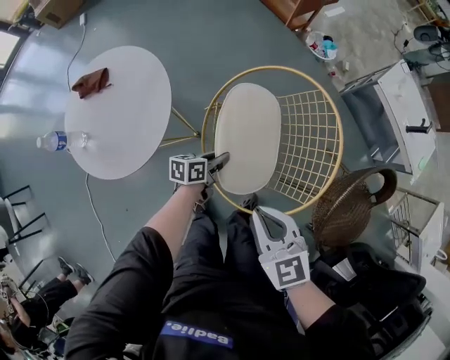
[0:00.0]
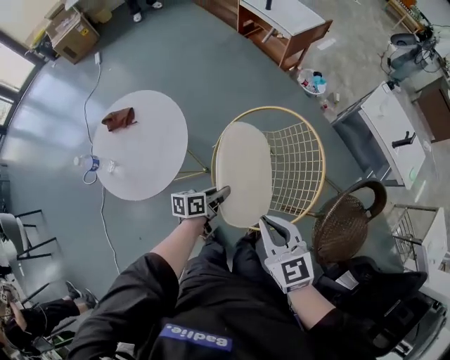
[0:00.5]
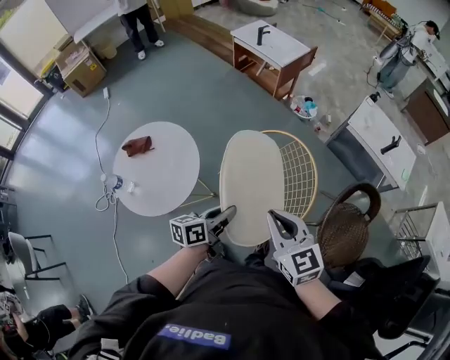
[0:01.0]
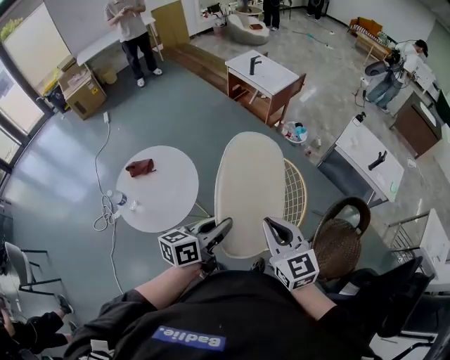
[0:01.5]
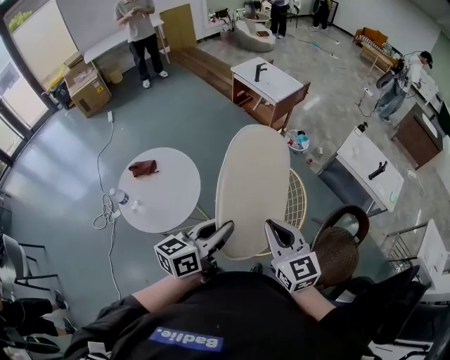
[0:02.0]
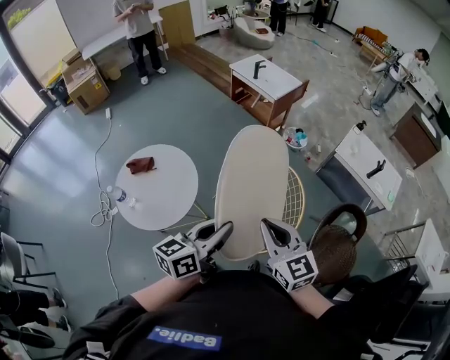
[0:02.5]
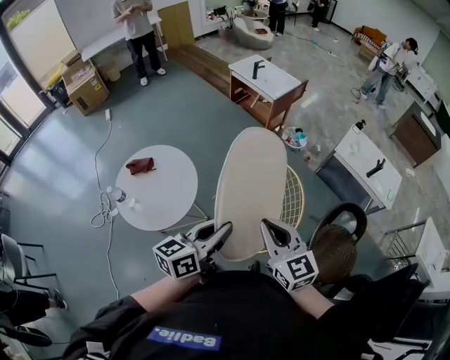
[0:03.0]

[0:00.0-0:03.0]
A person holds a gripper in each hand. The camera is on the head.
0:00.0 to 0:01.5: The left gripper heads upward, covering some 40 cm, and changes its angle by approximately 30 degrees. Meanwhile the right gripper travels upward by about 20 cm, and swivels some 20 degrees.
0:01.5 to 0:03.0: The left gripper is displaced upward by approximately 5 cm.

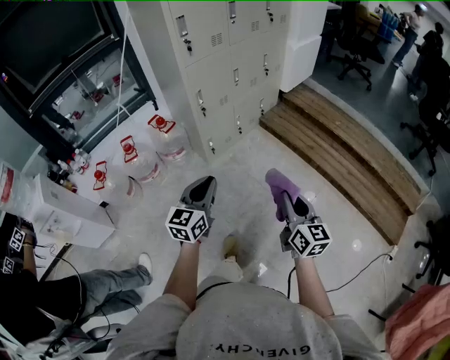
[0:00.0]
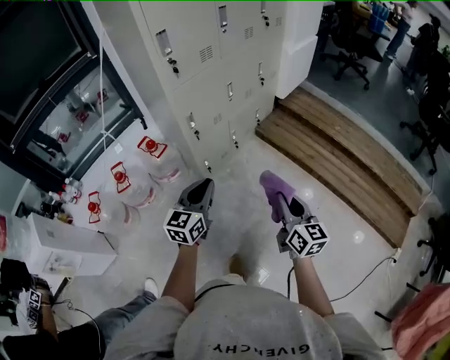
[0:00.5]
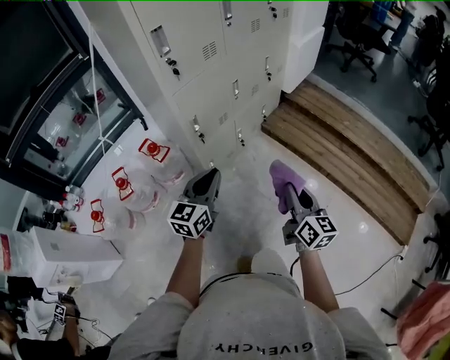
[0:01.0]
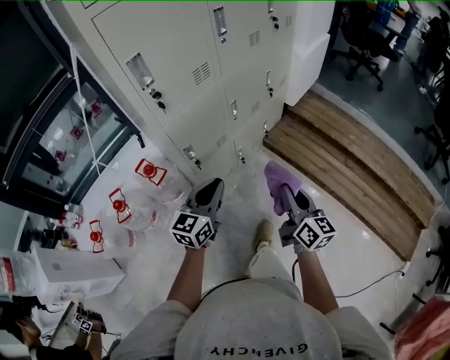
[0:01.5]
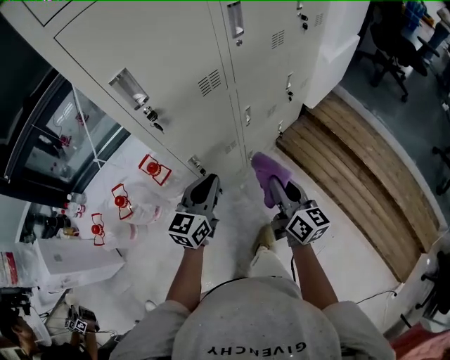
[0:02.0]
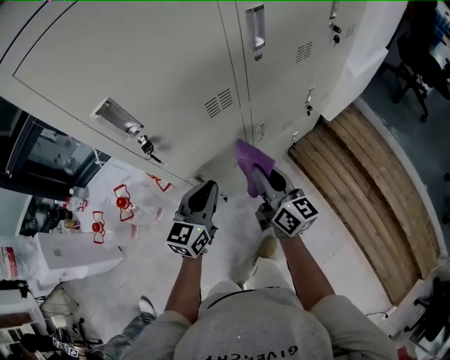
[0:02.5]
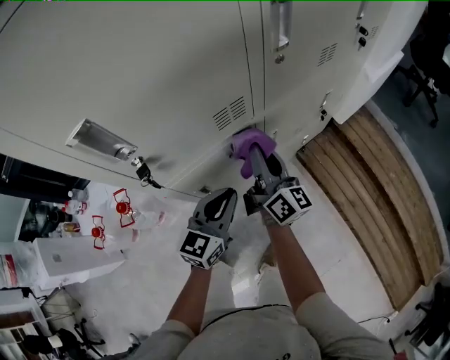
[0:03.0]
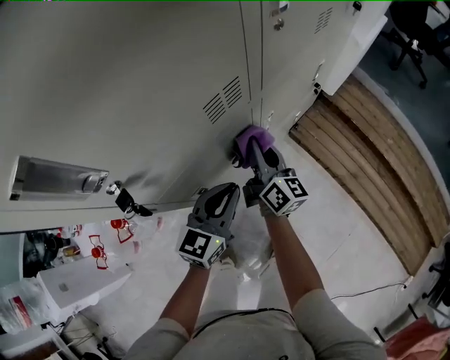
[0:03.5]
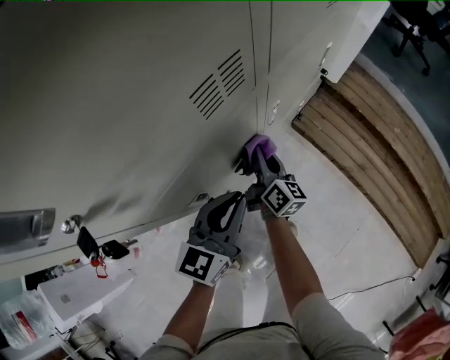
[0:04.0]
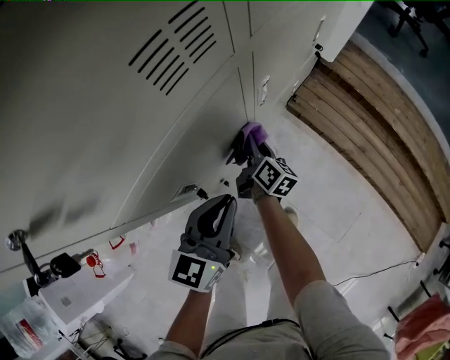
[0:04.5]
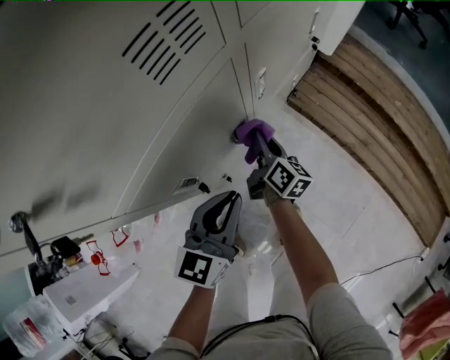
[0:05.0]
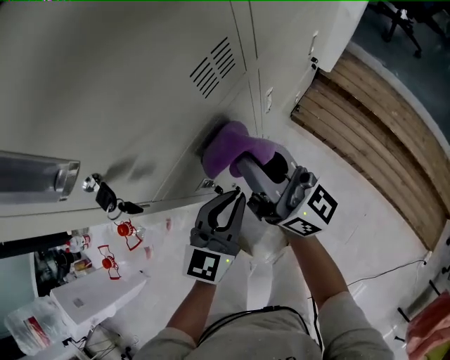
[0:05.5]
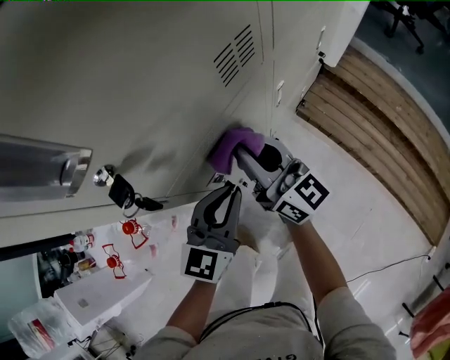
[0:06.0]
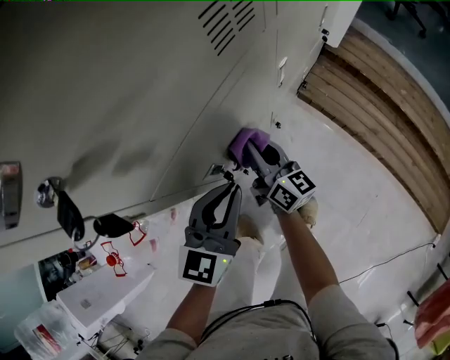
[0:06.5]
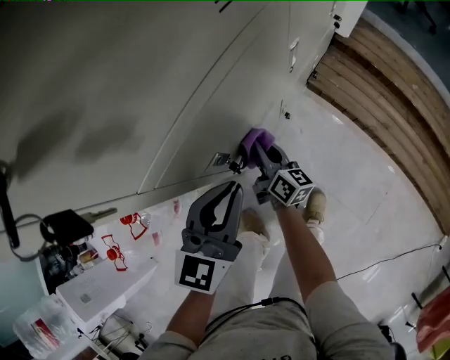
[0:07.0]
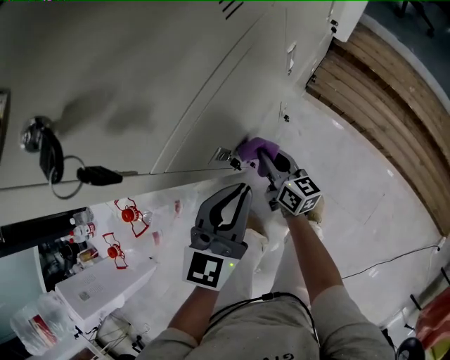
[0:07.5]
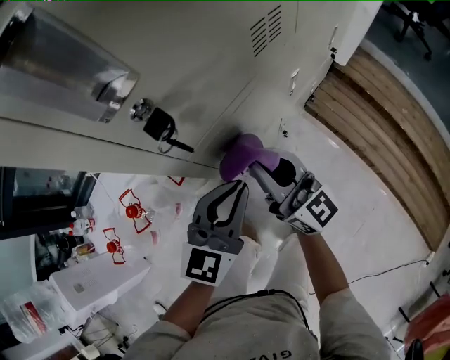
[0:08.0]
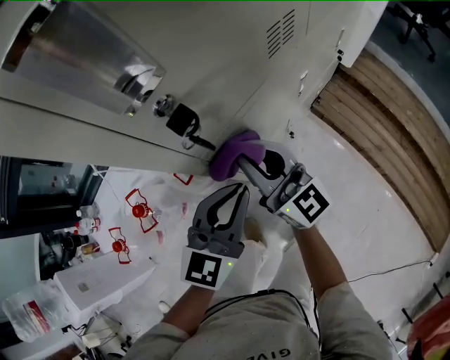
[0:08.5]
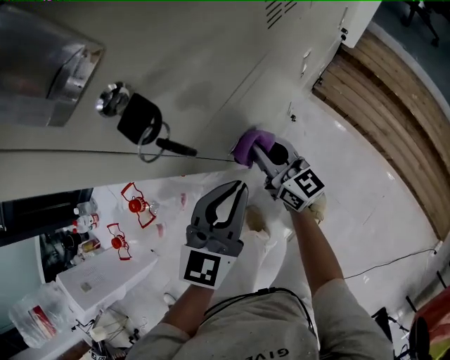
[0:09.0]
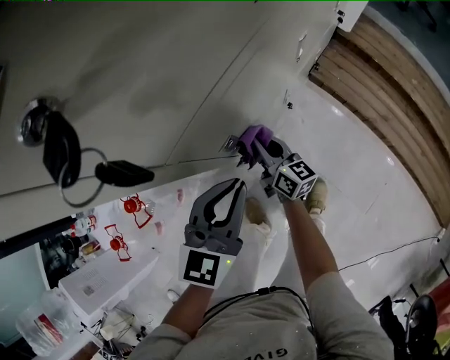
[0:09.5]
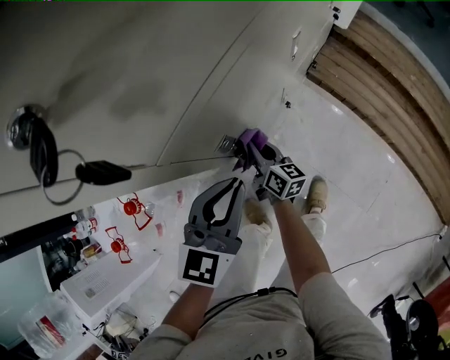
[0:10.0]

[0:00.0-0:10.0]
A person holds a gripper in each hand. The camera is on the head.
0:00.0 to 0:02.0: The pair of grippers is taken forward, approximately 50 cm.
0:02.0 to 0:04.0: The right gripper travels forward, downward and to the left by roughly 35 cm. The left gripper heads forward and downward, covering about 15 cm.
0:04.0 to 0:06.0: The left gripper changes place by some 5 cm; the right gripper swings up and down, about 35 cm each way, with 2 reversals, and changes its angle by some 40 degrees.
0:06.0 to 0:08.0: The left gripper changes place by about 5 cm; the right gripper travels backward by some 10 cm, and moves about 30 cm downward and comes back.
0:08.0 to 0:10.0: The left gripper goes some 10 cm downward. Meanwhile the right gripper is displaced downward by some 30 cm, and rotates about 40 degrees.

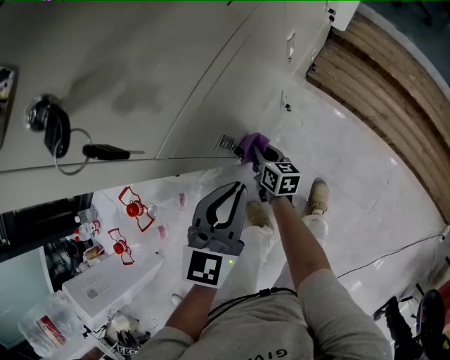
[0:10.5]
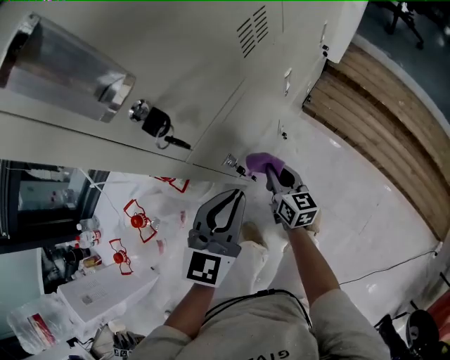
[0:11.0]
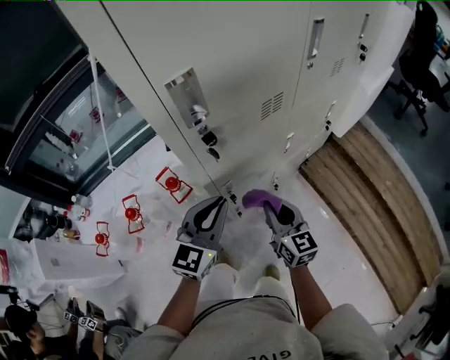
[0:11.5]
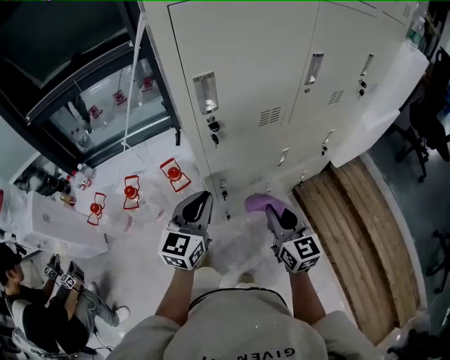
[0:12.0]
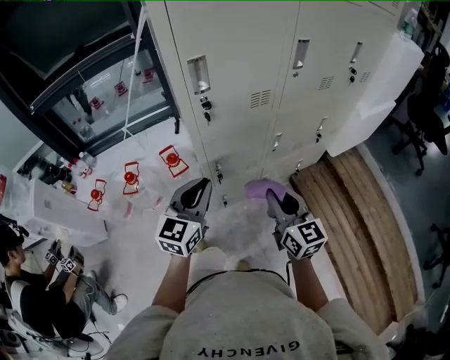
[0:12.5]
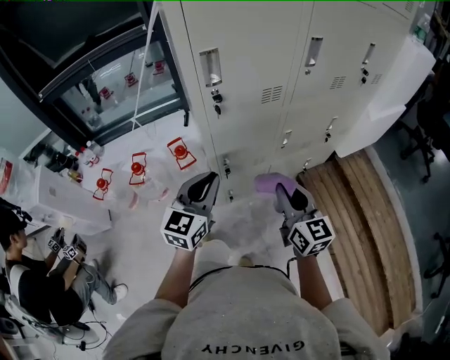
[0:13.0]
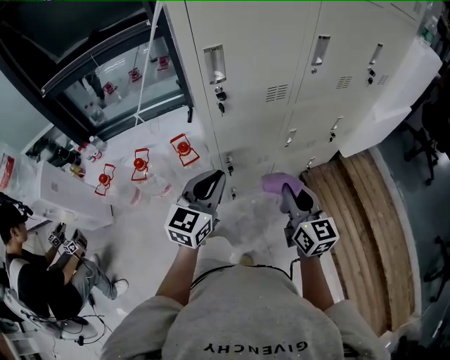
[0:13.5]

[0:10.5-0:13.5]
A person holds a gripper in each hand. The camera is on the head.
0:10.5 to 0:12.0: The left gripper goes some 20 cm upward, and changes its angle by about 40 degrees, while the right gripper is displaced upward by about 40 cm, and twists roughly 40 degrees counterclockwise, seen from behind.
0:12.0 to 0:13.5: The right gripper moves approximately 5 cm; the left gripper ends up roughly 5 cm from where it was.

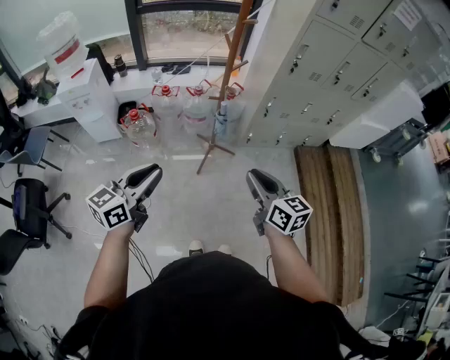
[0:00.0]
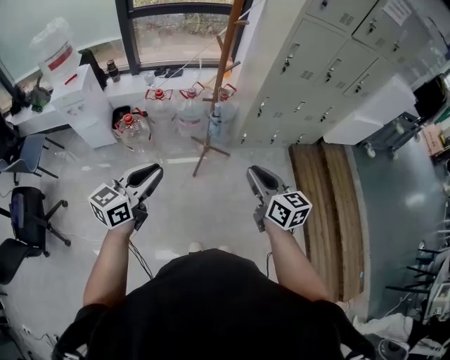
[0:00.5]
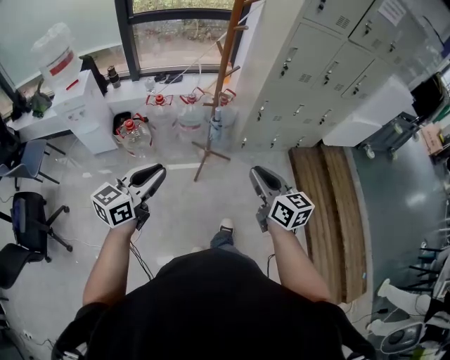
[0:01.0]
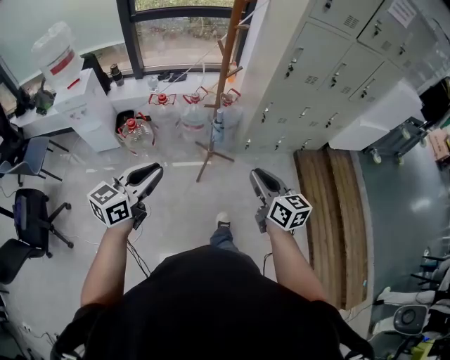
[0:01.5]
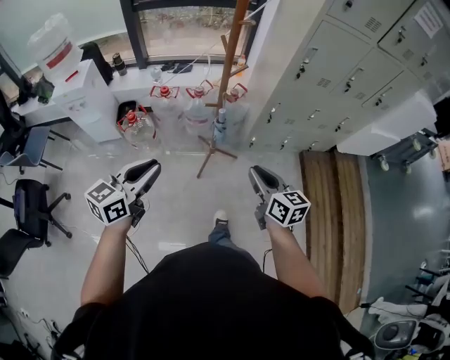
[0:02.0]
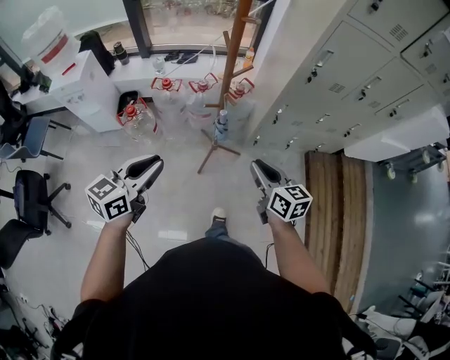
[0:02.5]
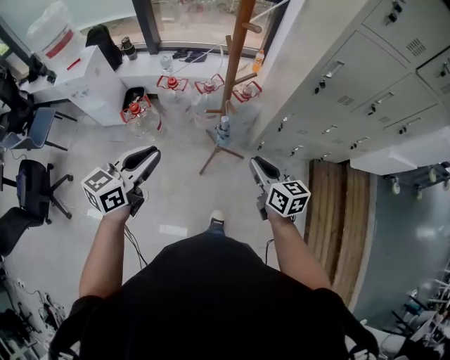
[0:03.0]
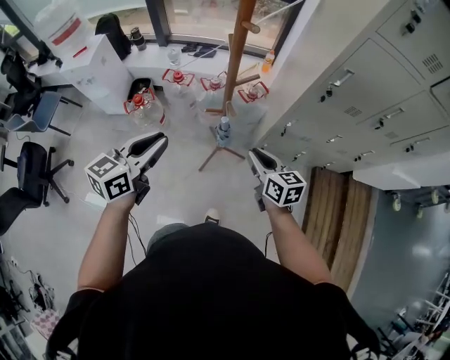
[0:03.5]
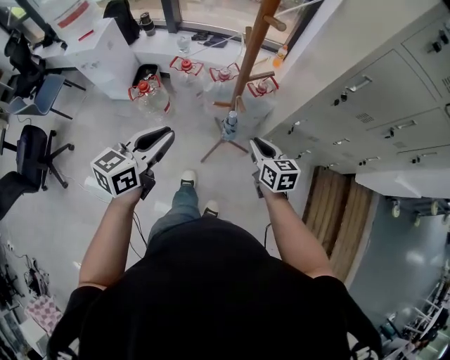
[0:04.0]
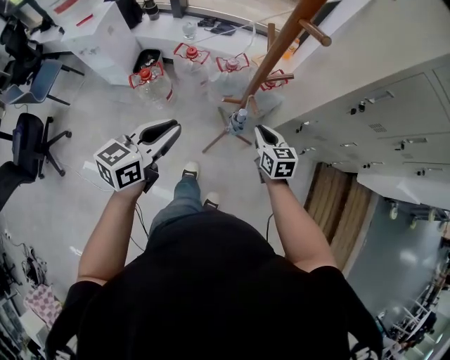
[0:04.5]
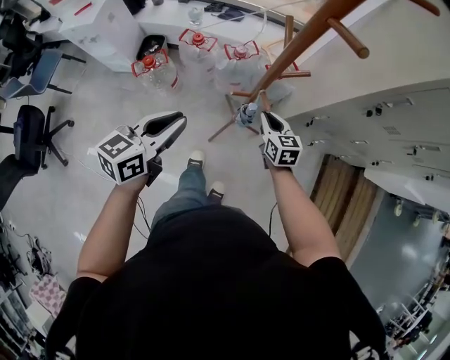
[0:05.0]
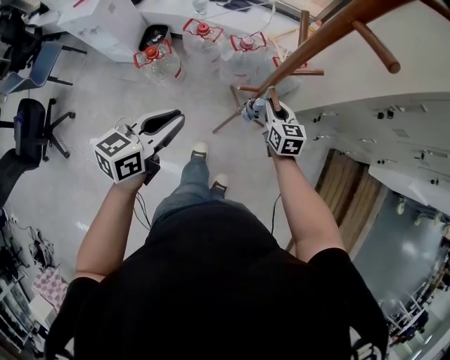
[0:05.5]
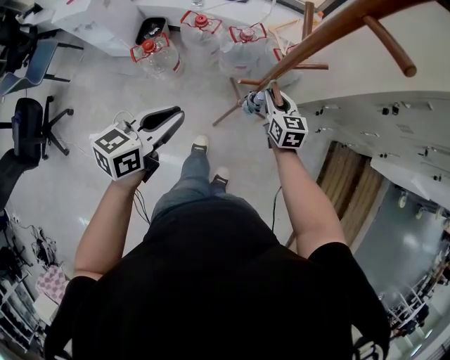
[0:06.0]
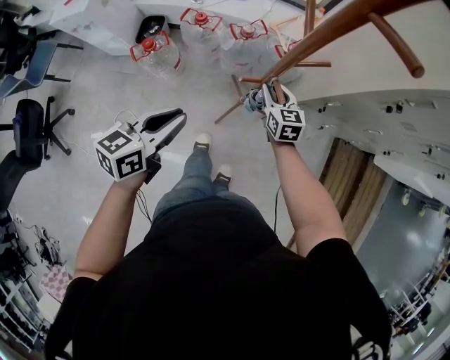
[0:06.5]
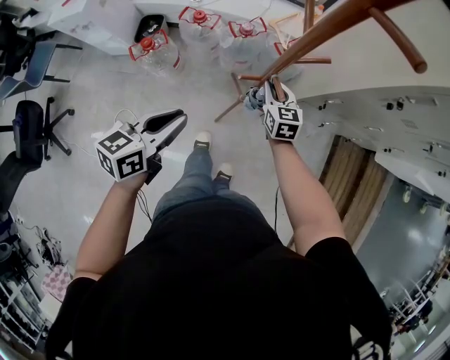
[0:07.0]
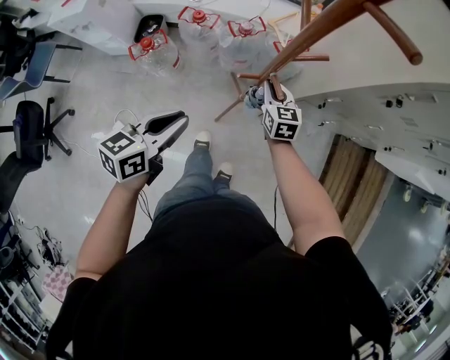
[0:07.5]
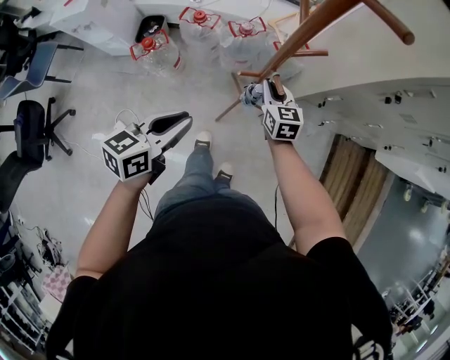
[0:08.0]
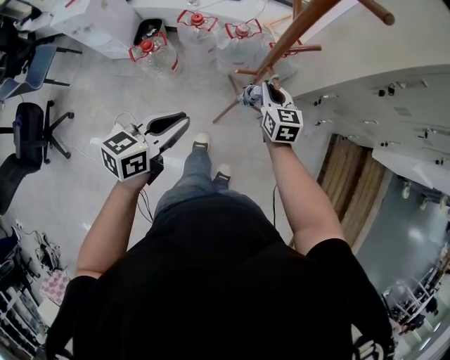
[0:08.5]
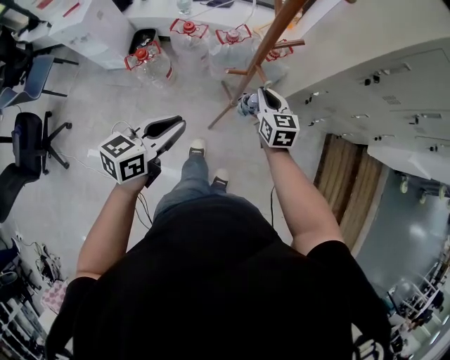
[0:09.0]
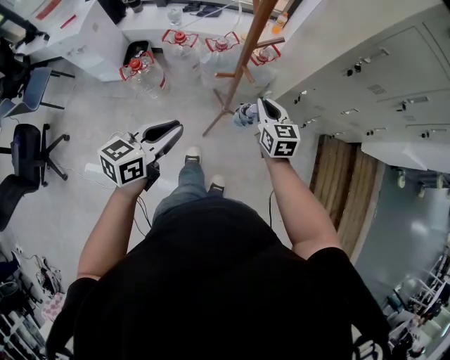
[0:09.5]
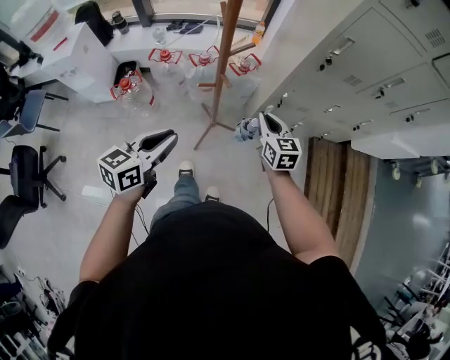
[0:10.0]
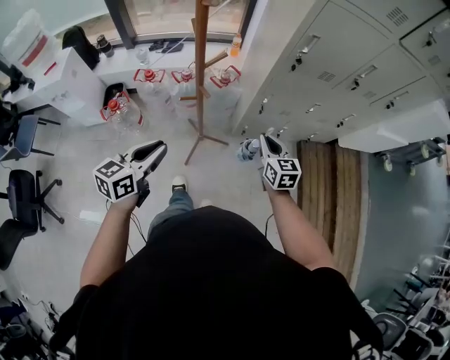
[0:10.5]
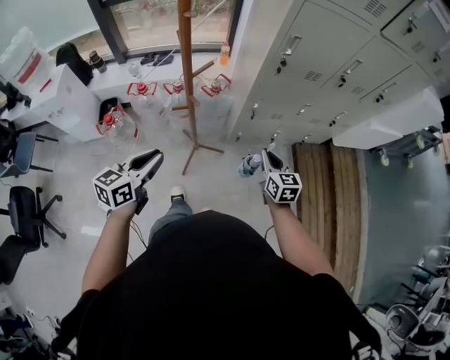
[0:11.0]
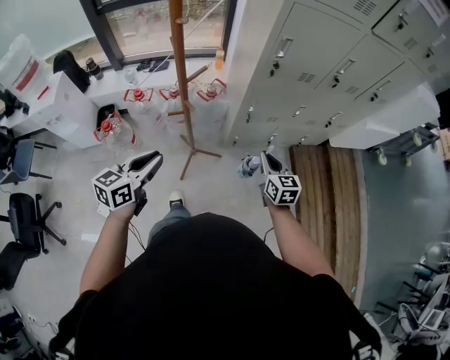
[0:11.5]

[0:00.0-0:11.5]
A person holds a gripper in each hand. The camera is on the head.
0:00.0 to 0:02.0: The right gripper shifts about 15 cm forward and downward, while the left gripper goes some 15 cm forward.
0:02.0 to 0:04.0: The left gripper goes some 20 cm forward. The right gripper goes about 30 cm forward and downward.
0:04.0 to 0:06.0: The right gripper shifts about 20 cm forward, downward and to the left, while the left gripper shifts approximately 15 cm downward, forward and to the left.
0:06.0 to 0:07.5: There are only small adjustments of the grippers.
0:07.5 to 0:09.5: The right gripper moves backward, upward and to the right, approximately 15 cm, while the left gripper goes about 10 cm backward, to the right and upward.
0:09.5 to 0:11.5: The right gripper goes roughly 25 cm to the right and backward, while the left gripper heads to the right, covering roughly 10 cm.
